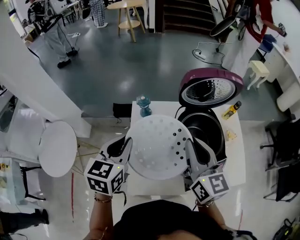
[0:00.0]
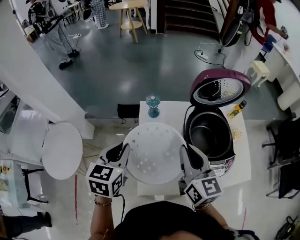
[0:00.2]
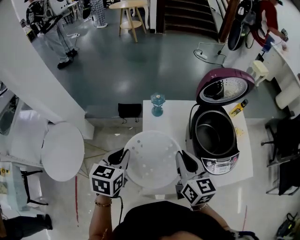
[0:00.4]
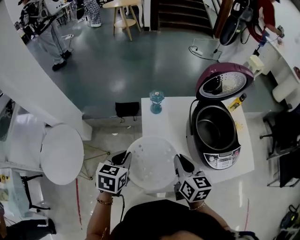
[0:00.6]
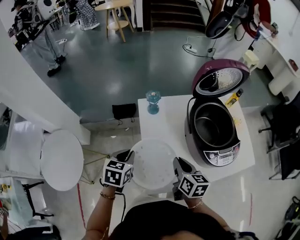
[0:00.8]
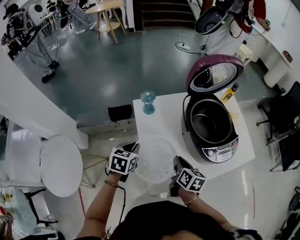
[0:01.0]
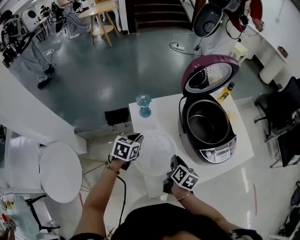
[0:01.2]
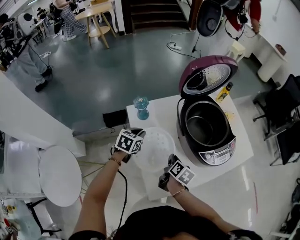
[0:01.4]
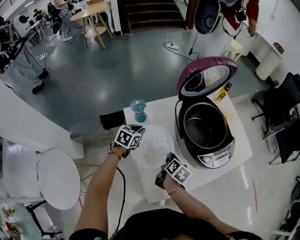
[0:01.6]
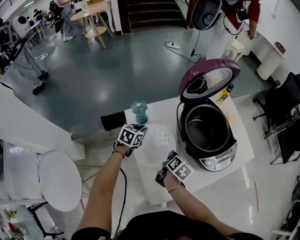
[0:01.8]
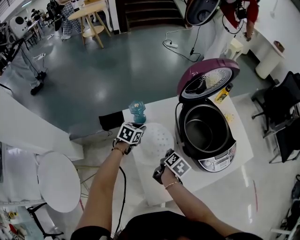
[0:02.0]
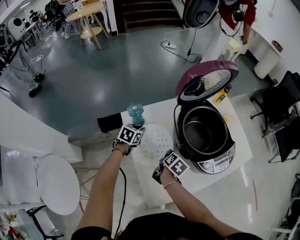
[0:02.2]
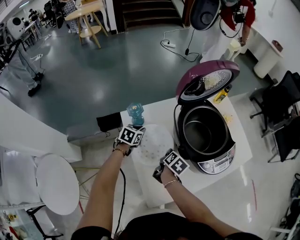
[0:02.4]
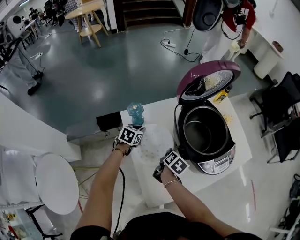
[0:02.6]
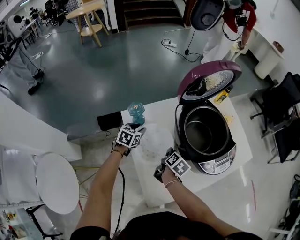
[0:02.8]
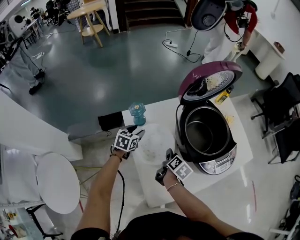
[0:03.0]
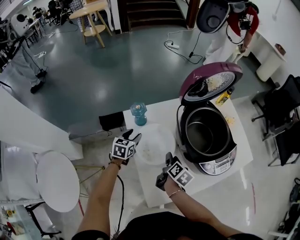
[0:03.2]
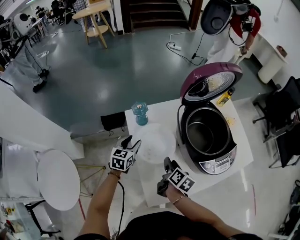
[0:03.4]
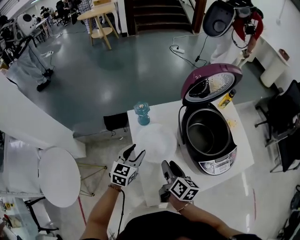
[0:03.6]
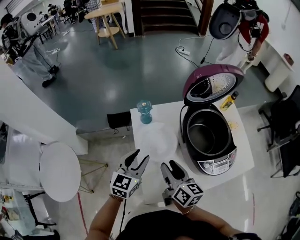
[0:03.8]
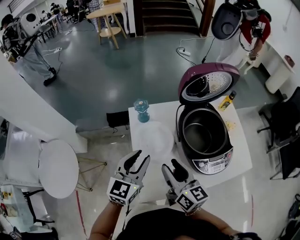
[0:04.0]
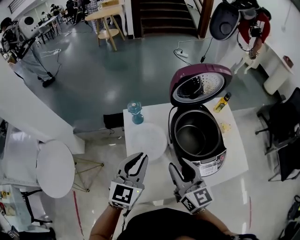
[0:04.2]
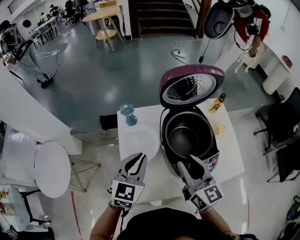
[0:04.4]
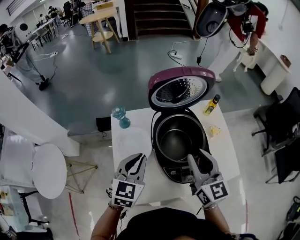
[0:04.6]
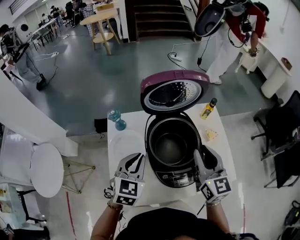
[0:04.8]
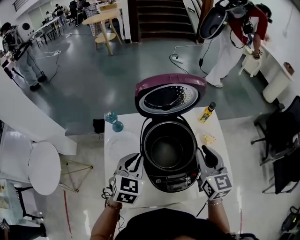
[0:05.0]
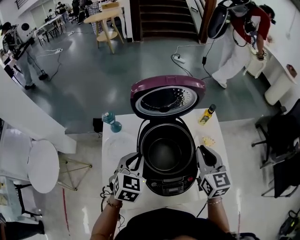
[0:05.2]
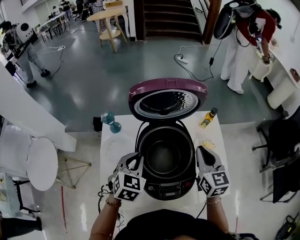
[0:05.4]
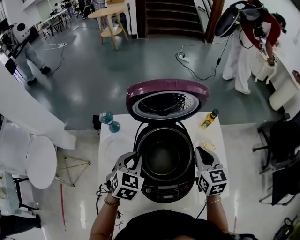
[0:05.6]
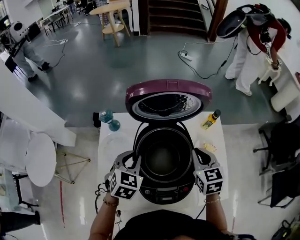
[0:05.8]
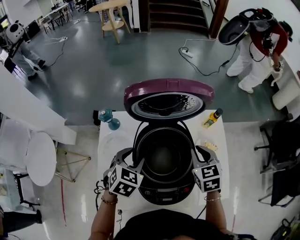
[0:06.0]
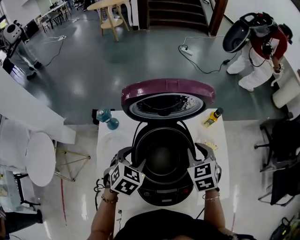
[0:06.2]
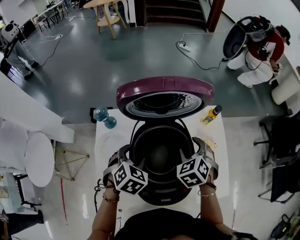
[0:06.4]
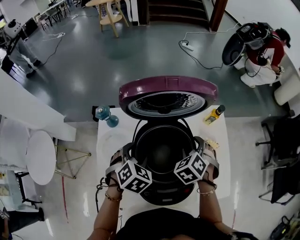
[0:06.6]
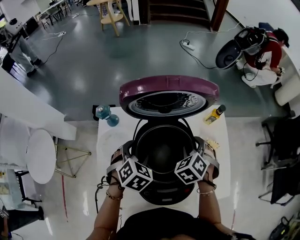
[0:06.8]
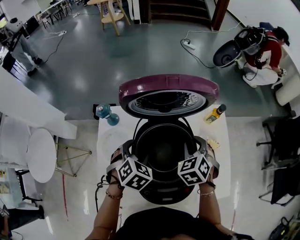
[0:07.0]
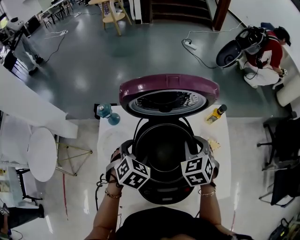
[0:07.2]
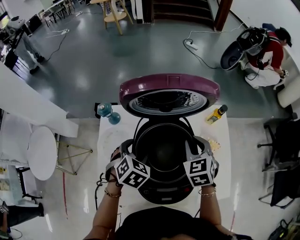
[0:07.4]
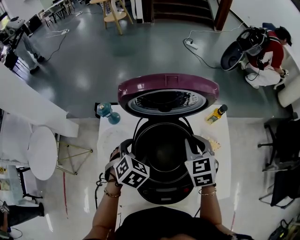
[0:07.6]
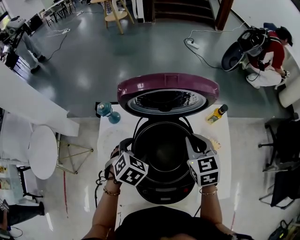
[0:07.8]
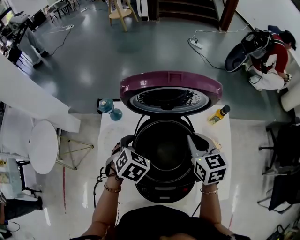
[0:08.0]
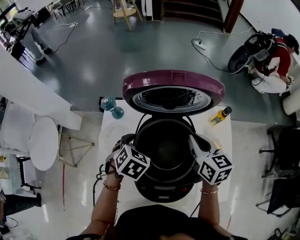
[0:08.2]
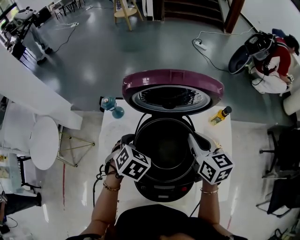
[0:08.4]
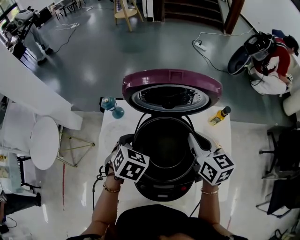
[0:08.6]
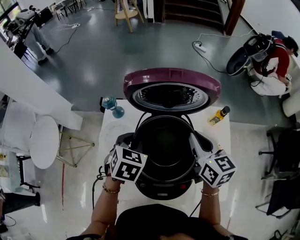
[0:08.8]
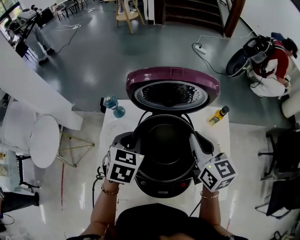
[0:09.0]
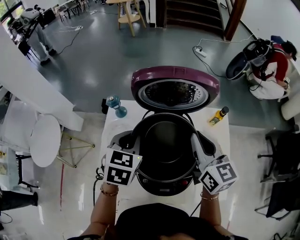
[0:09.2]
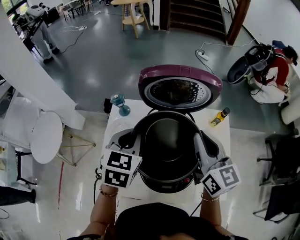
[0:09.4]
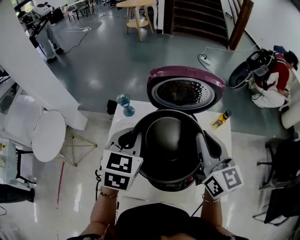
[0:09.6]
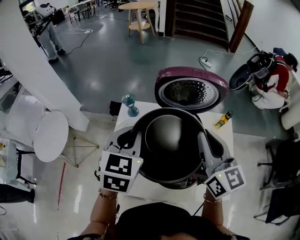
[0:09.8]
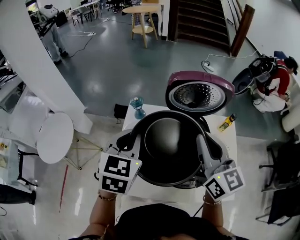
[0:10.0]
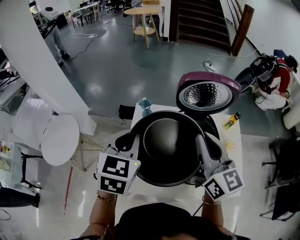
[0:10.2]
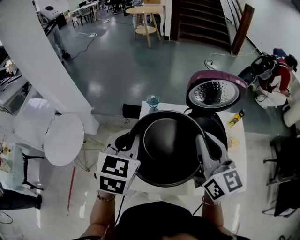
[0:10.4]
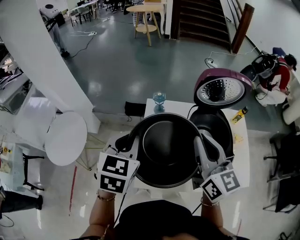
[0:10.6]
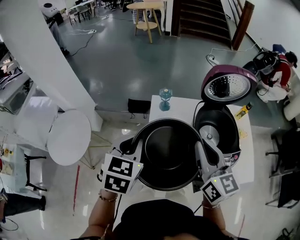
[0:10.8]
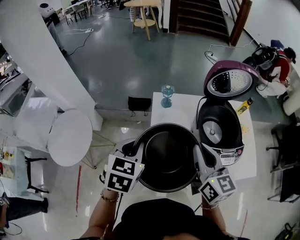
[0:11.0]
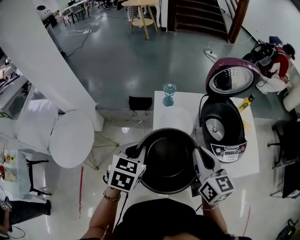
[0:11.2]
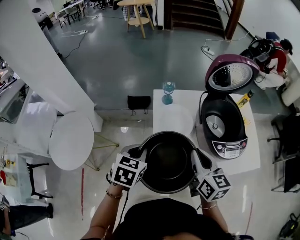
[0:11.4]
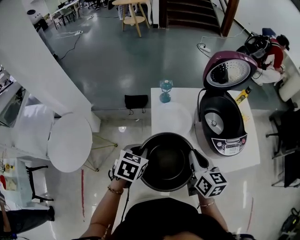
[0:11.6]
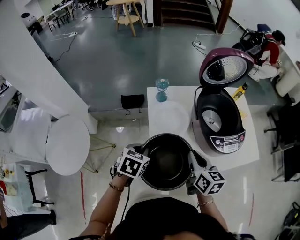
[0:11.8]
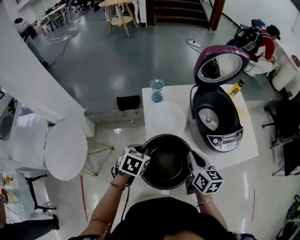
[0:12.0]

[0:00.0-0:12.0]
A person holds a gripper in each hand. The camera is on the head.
0:00.0 to 0:01.6: The two grippers go some 30 cm downward. The left gripper changes its angle by some 40 degrees. Meanwhile the right gripper points its fingers some 40 degrees further downward.
0:01.6 to 0:03.0: The left gripper ends up some 5 cm from where it was, while the right gripper ends up about 5 cm from where it was.
0:03.0 to 0:04.4: The two grippers go some 25 cm upward. The right gripper points its fingers approximately 40 degrees further upward, while the left gripper changes its angle by some 30 degrees.
0:04.4 to 0:06.0: The left gripper heads to the right, forward and downward, covering roughly 15 cm, and turns by about 30 degrees. The right gripper is displaced to the right, forward and downward by roughly 25 cm, and tilts its fingers about 30 degrees downward.
0:06.0 to 0:07.6: The right gripper opens and closes again.
0:07.6 to 0:09.0: The grippers both shift upward by roughly 10 cm. The left gripper swivels roughly 20 degrees, and closes up. Meanwhile the right gripper swivels some 30 degrees.
0:09.0 to 0:10.4: Both grippers move to the left, upward and backward, approximately 25 cm.
0:10.4 to 0:12.0: Both grippers travel together downward, some 25 cm. The left gripper swivels roughly 40 degrees; the right gripper swivels roughly 40 degrees.

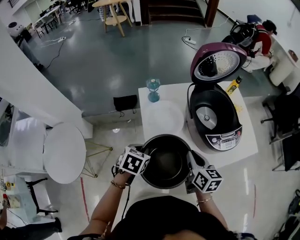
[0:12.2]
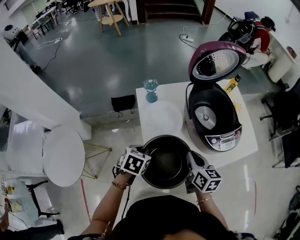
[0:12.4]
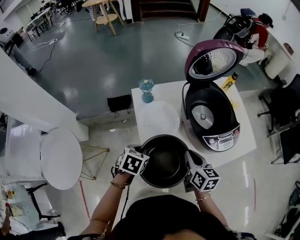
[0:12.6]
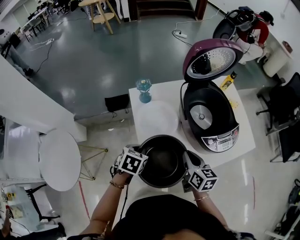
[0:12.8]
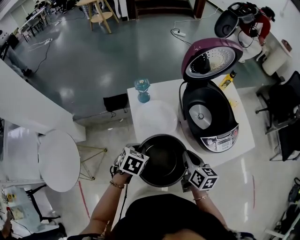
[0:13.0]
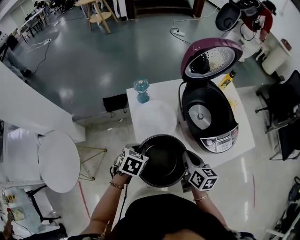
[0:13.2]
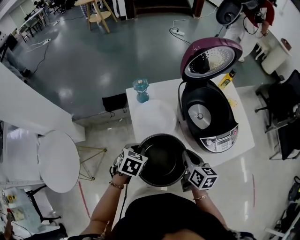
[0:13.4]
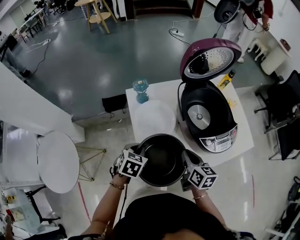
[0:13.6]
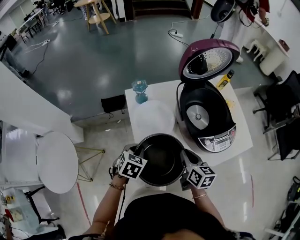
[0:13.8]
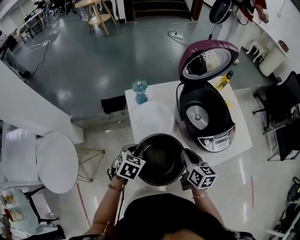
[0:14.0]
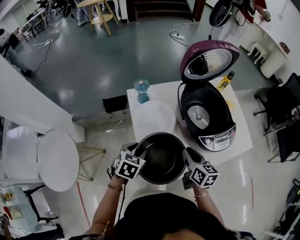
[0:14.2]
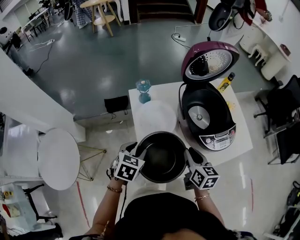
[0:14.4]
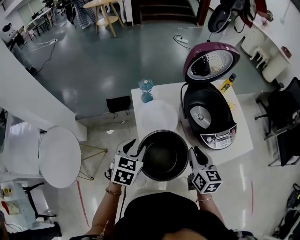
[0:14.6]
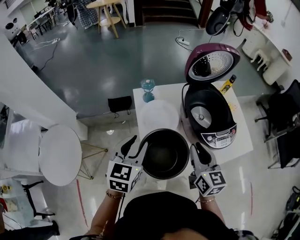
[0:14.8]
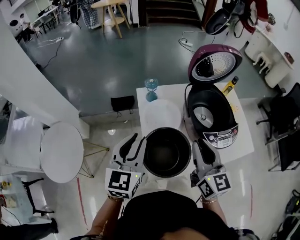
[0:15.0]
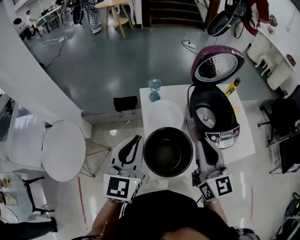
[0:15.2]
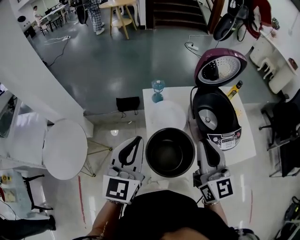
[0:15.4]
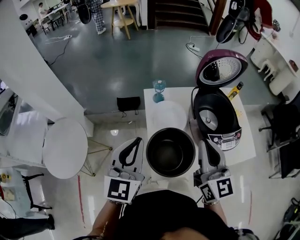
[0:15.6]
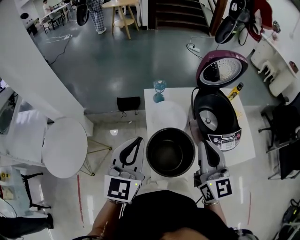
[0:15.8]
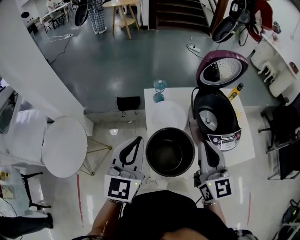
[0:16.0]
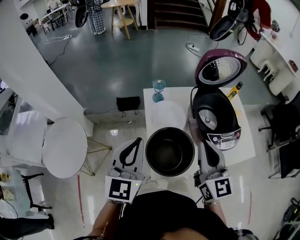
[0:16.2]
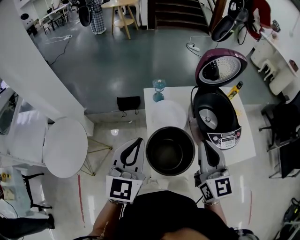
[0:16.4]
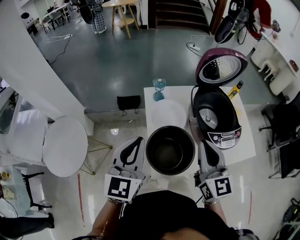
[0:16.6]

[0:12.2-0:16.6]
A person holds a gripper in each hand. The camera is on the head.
0:12.2 to 0:13.6: The left gripper shifts by some 5 cm. The right gripper ends up some 5 cm from where it was.
0:13.6 to 0:15.2: The grippers both shift upward by some 25 cm. The left gripper points its fingers approximately 50 degrees further upward. Meanwhile the right gripper changes its angle by approximately 40 degrees.
0:15.2 to 0:16.6: The grippers make only small movements.

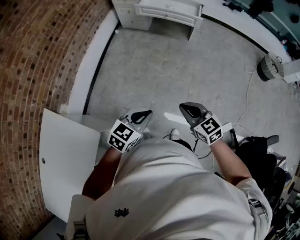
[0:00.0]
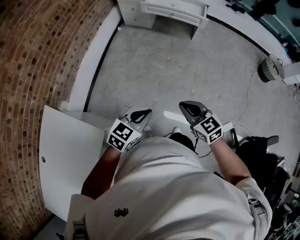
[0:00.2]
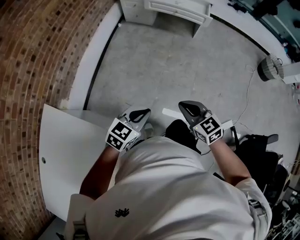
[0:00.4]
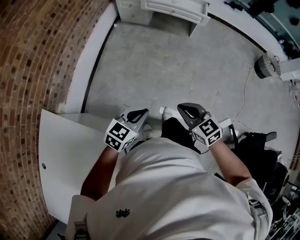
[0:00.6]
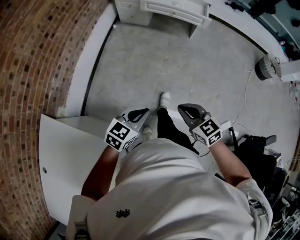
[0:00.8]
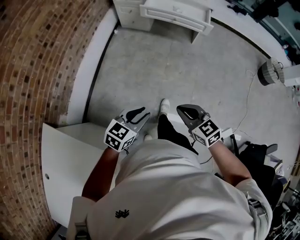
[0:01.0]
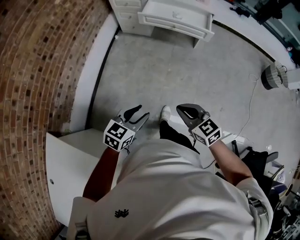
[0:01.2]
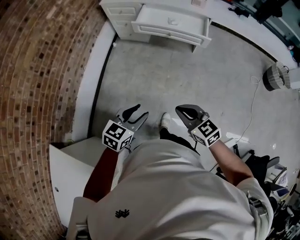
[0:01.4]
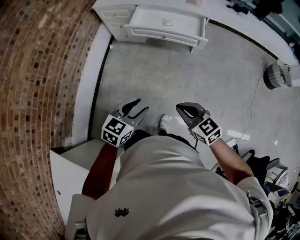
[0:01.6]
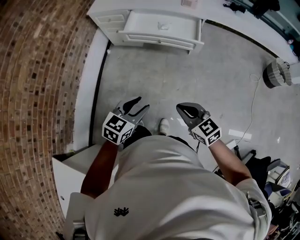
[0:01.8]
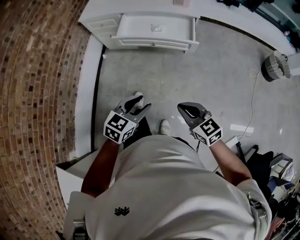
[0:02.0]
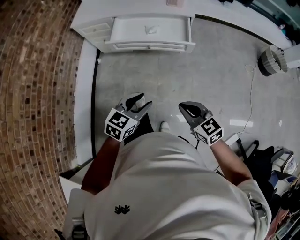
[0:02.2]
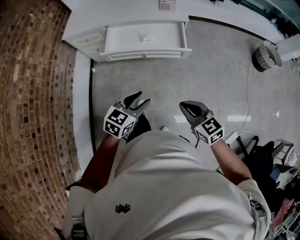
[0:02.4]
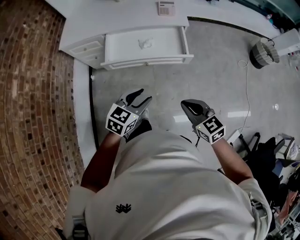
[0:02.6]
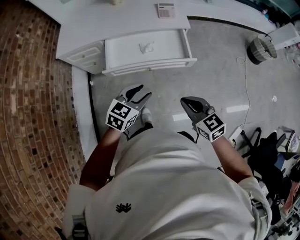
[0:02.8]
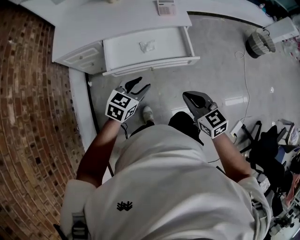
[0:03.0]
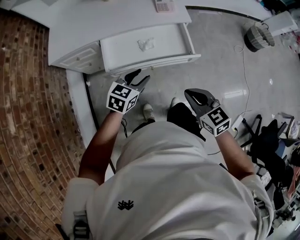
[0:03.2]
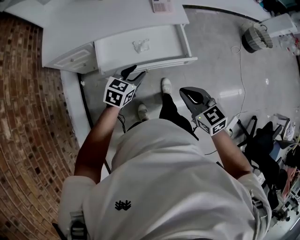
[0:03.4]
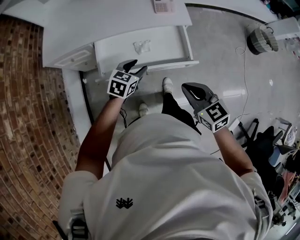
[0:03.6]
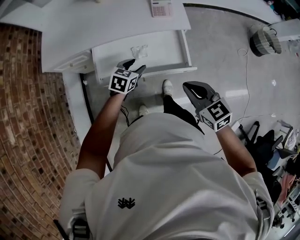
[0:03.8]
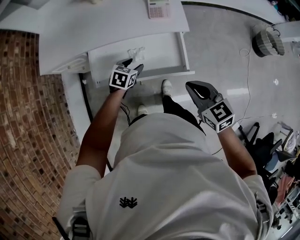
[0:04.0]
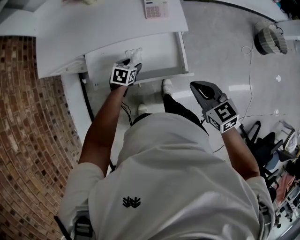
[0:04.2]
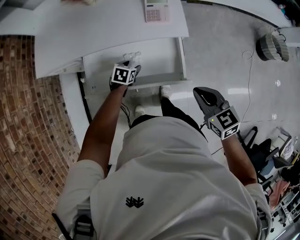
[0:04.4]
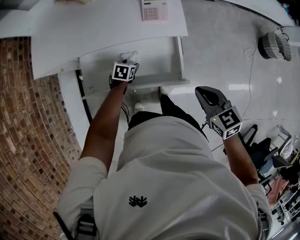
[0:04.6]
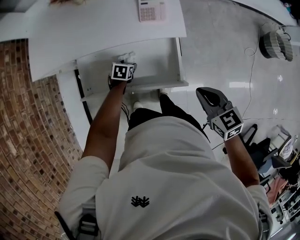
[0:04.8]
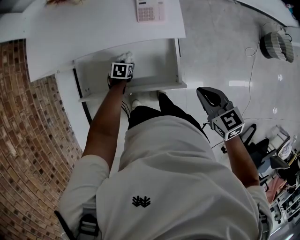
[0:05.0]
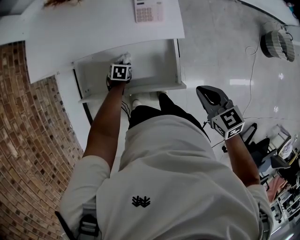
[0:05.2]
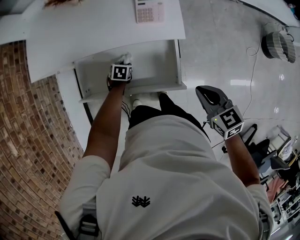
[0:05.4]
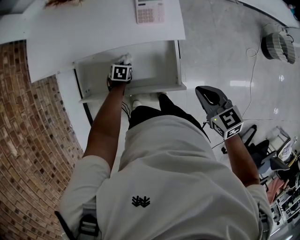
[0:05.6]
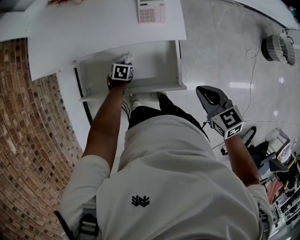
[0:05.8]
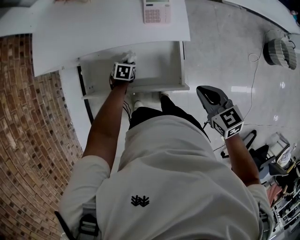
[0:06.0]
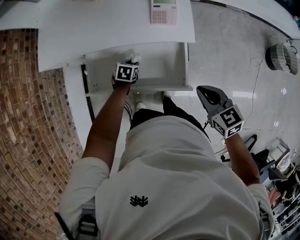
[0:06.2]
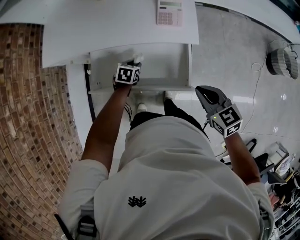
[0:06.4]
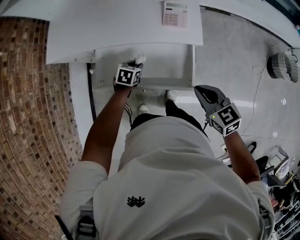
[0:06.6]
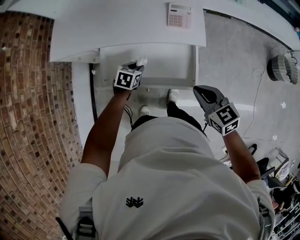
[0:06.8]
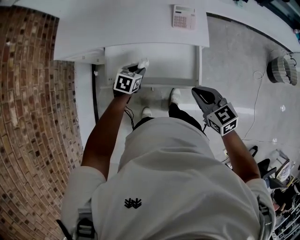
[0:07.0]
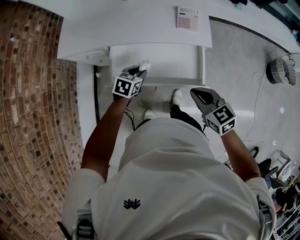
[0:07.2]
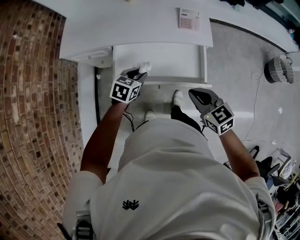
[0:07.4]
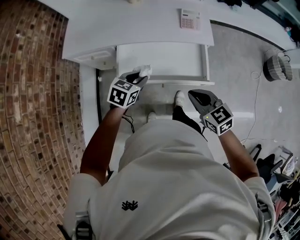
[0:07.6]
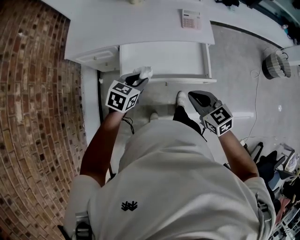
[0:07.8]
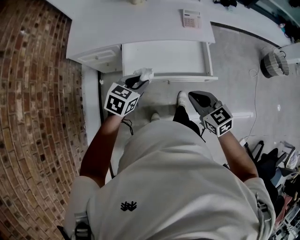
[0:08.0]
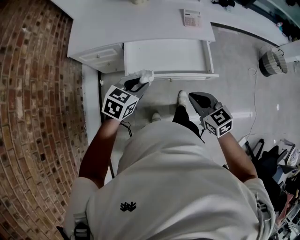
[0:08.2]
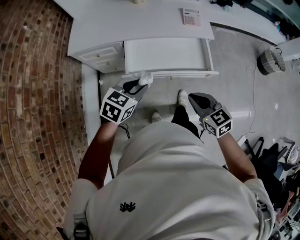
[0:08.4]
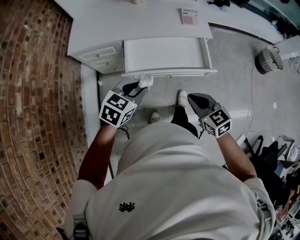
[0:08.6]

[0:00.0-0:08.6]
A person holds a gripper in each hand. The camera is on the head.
0:00.0 to 0:01.4: Both grippers move forward, approximately 30 cm. The left gripper opens its fingers.
0:01.4 to 0:02.8: Both grippers move forward, roughly 40 cm. The left gripper swivels roughly 20 degrees. The right gripper turns by approximately 30 degrees.
0:02.8 to 0:04.4: The right gripper moves forward and to the right, about 30 cm. Meanwhile the left gripper goes roughly 40 cm forward and downward, and tilts its fingers approximately 30 degrees downward.
0:04.4 to 0:05.8: The right gripper moves some 10 cm. The left gripper shifts approximately 5 cm downward, and closes its fingers.
0:05.8 to 0:07.2: The left gripper heads upward, covering roughly 20 cm, and swivels roughly 20 degrees. The right gripper shifts by roughly 20 cm.
0:07.2 to 0:08.6: The left gripper shifts some 25 cm backward, upward and to the left, and swivels about 20 degrees. The right gripper moves backward and to the left, about 20 cm.
